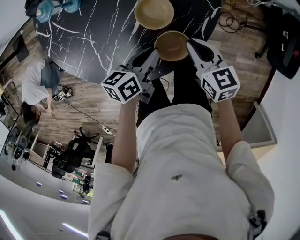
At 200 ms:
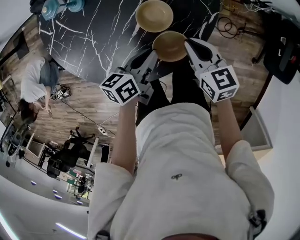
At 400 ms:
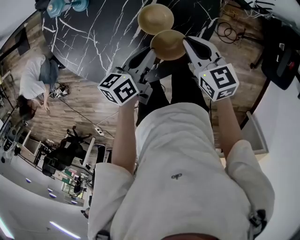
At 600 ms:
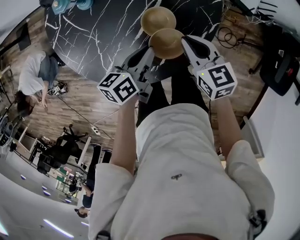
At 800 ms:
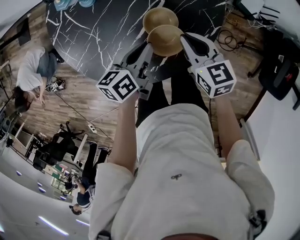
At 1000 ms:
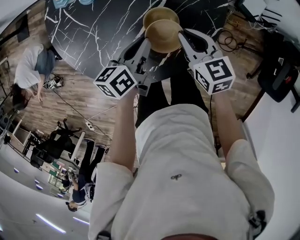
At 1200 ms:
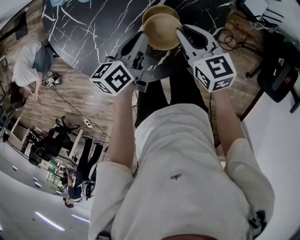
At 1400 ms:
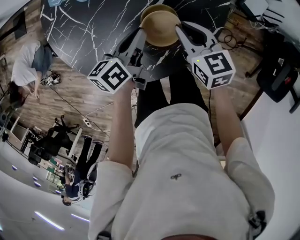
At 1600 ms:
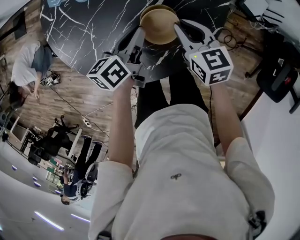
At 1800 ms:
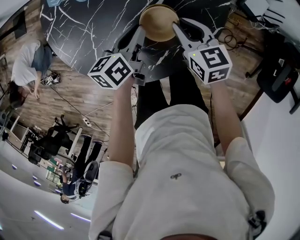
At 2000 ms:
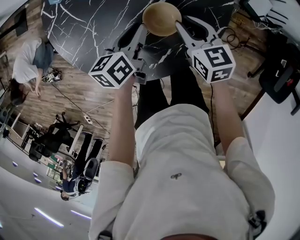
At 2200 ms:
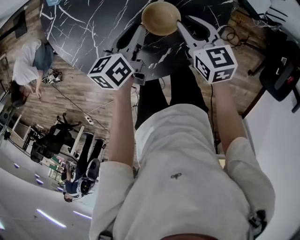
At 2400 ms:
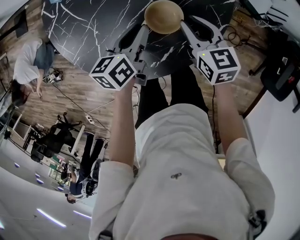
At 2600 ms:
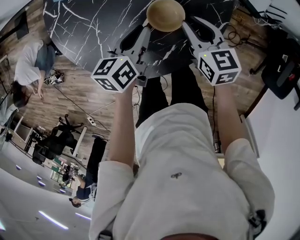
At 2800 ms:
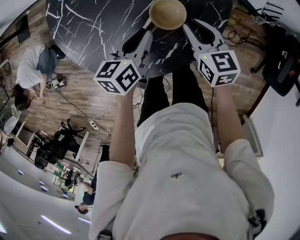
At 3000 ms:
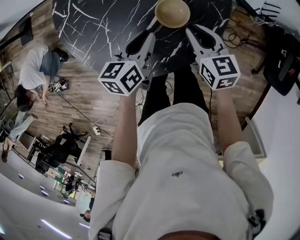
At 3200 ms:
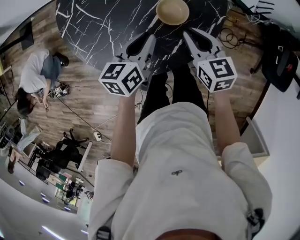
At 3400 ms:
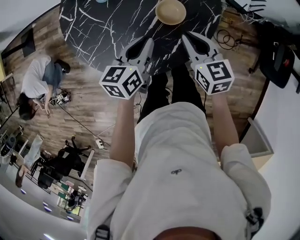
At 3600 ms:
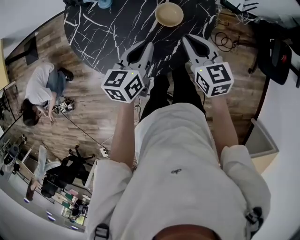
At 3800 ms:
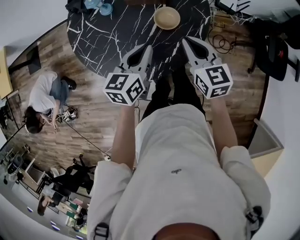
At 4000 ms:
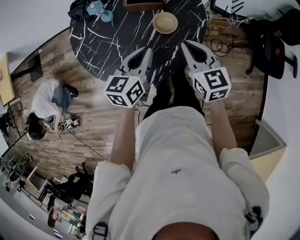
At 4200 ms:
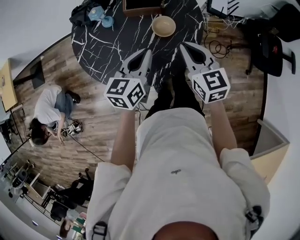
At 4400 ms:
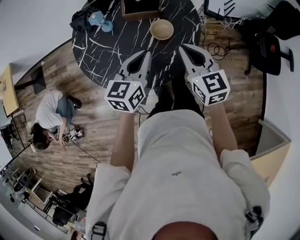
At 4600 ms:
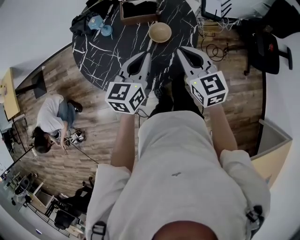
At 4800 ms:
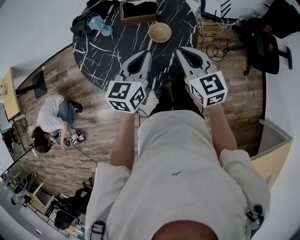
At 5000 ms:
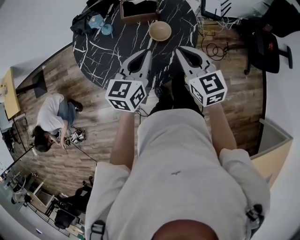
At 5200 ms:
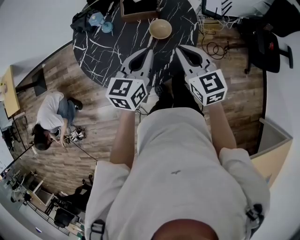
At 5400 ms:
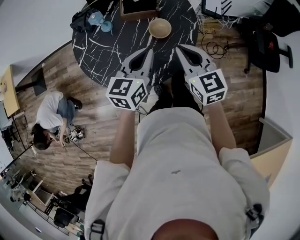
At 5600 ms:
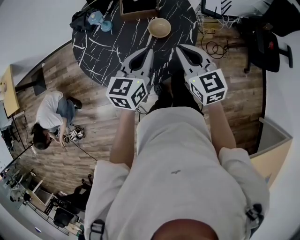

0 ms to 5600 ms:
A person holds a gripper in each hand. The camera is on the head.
0 ms to 1400 ms: Both grippers travel together forward, some 10 cm. The left gripper swivels some 20 degrees.
1400 ms to 2800 ms: The grippers make only small movements.
2800 ms to 4200 ms: Both grippers move upward and backward, approximately 20 cm. The left gripper changes its angle by approximately 30 degrees, while the right gripper swivels approximately 20 degrees, and closes its fingers.
4200 ms to 5600 ms: The grippers make only small movements.

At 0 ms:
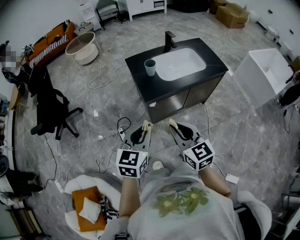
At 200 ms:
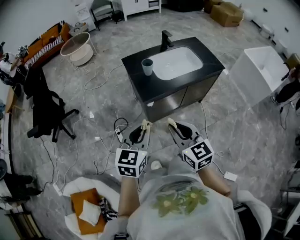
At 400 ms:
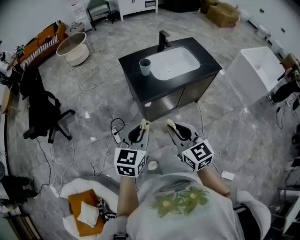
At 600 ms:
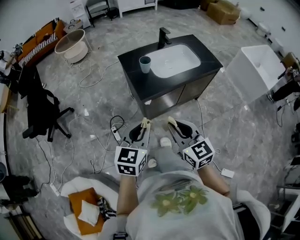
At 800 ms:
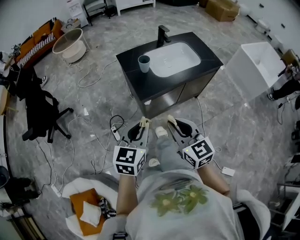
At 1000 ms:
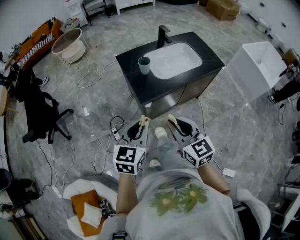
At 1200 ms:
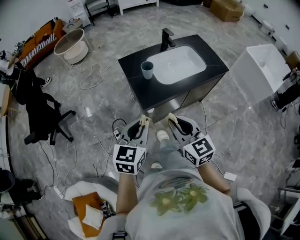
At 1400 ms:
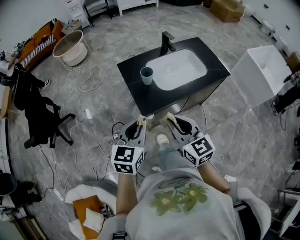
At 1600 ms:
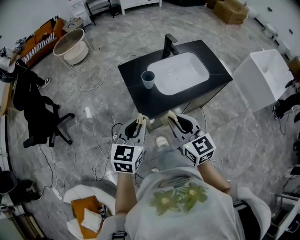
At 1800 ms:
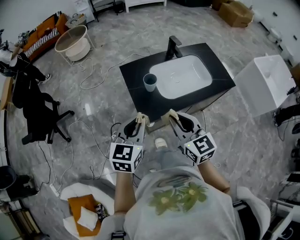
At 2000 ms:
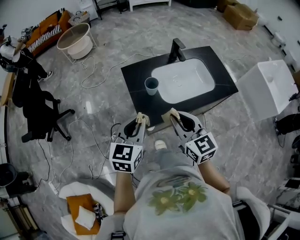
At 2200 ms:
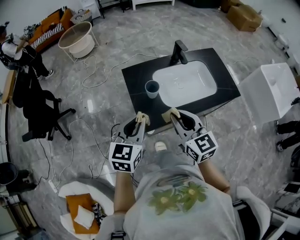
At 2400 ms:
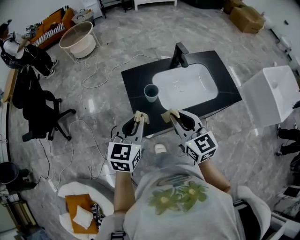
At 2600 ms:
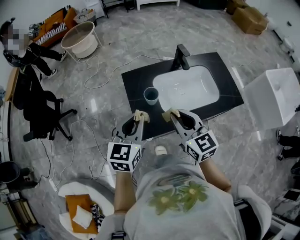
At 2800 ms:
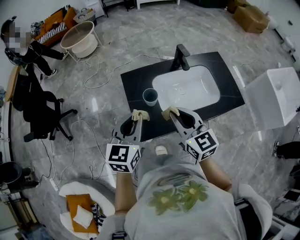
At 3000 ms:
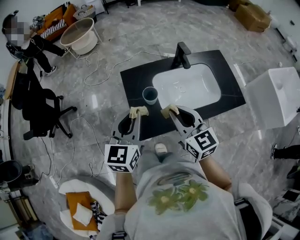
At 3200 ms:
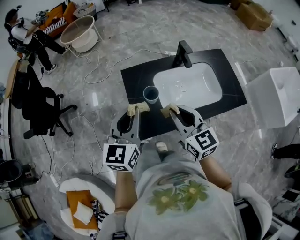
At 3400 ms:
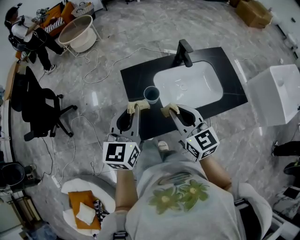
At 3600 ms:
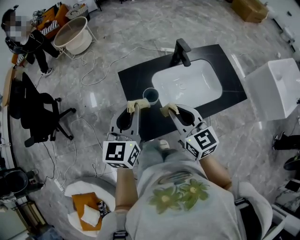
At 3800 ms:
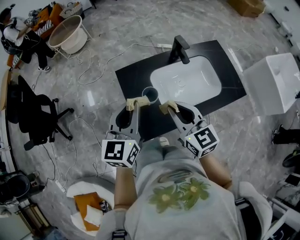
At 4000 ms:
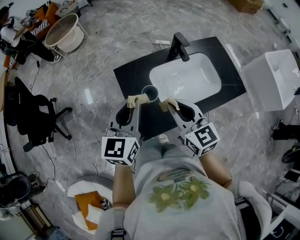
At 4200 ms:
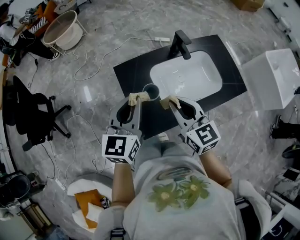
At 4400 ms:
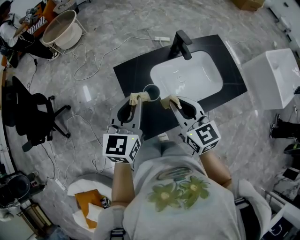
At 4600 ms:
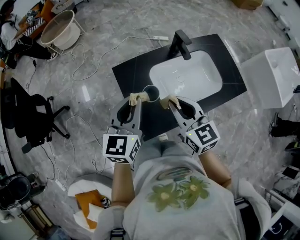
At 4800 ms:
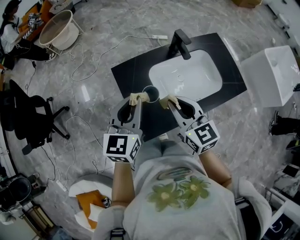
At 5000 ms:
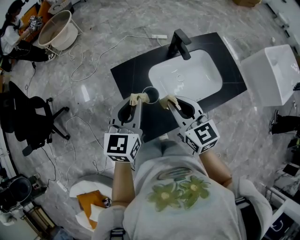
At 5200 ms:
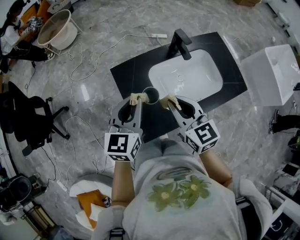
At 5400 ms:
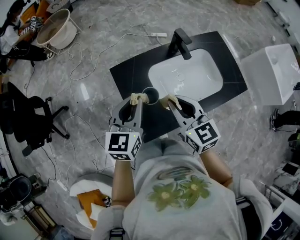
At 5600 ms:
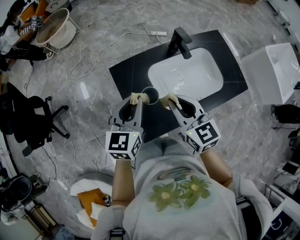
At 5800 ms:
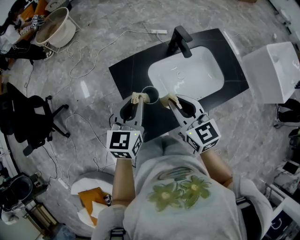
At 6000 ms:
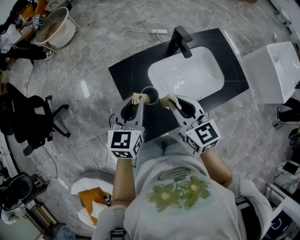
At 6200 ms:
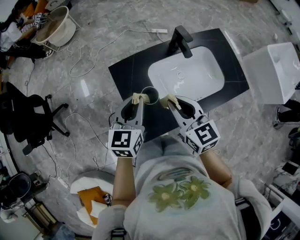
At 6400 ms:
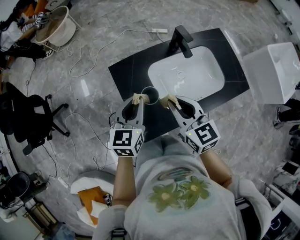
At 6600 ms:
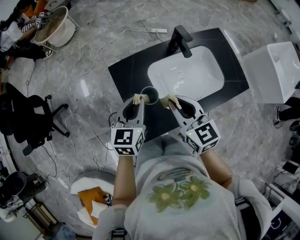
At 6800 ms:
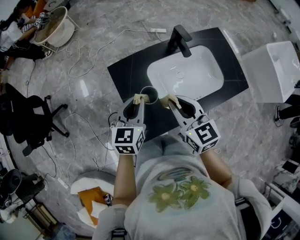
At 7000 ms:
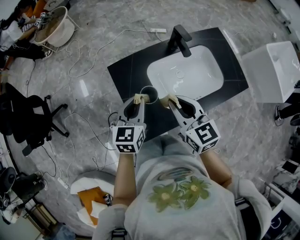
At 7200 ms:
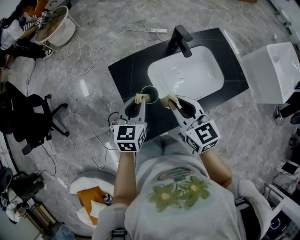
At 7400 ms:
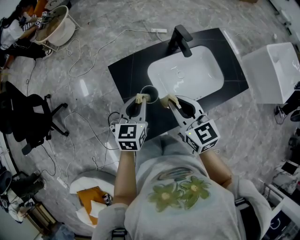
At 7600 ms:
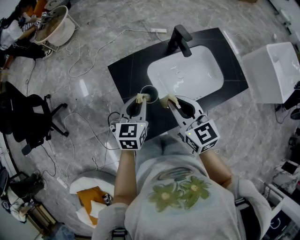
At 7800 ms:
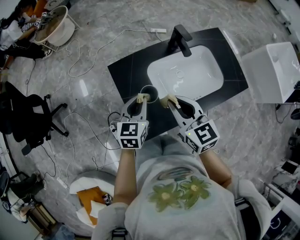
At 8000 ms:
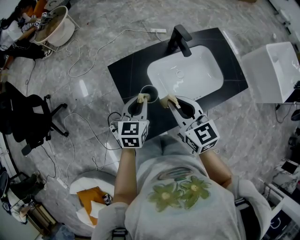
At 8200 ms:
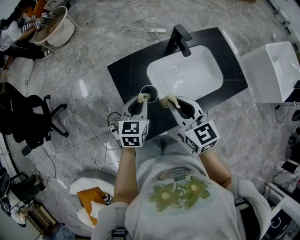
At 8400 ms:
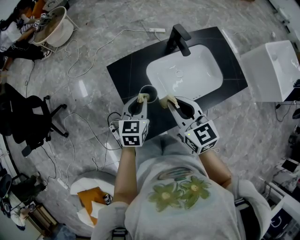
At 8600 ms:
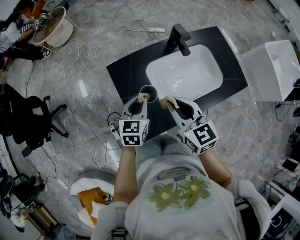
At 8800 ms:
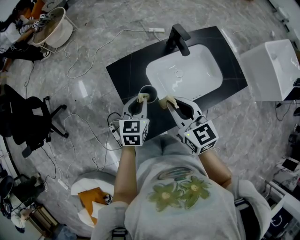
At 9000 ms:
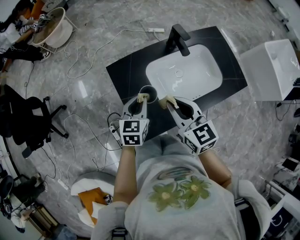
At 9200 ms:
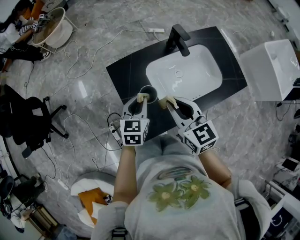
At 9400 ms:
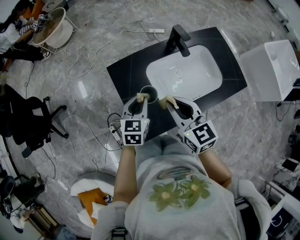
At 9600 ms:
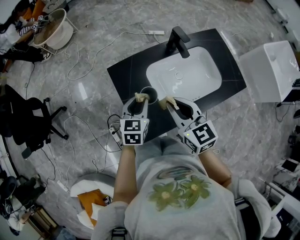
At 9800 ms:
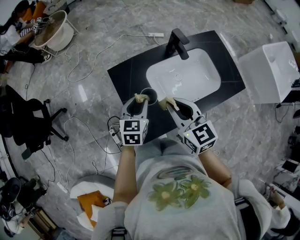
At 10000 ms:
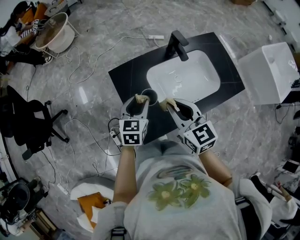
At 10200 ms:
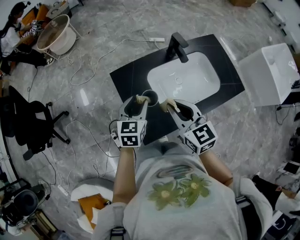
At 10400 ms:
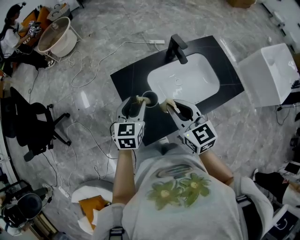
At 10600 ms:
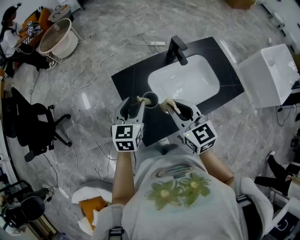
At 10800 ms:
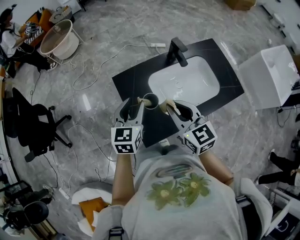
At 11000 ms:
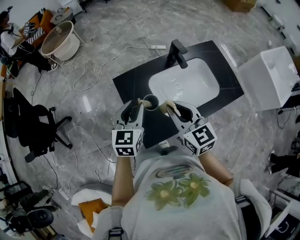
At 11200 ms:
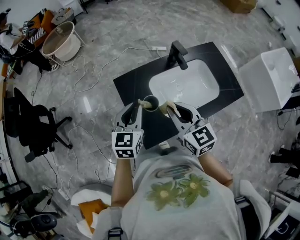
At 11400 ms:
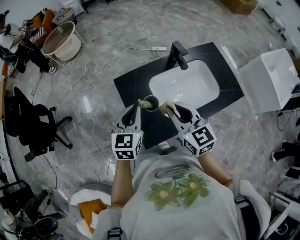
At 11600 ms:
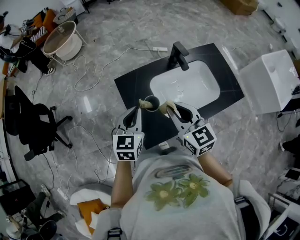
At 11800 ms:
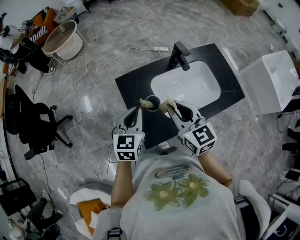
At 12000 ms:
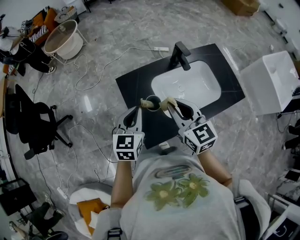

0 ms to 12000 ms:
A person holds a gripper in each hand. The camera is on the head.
0 ms to 1600 ms: Both grippers travel together forward, about 20 cm.
1600 ms to 3000 ms: The grippers both shift forward by some 20 cm.
3000 ms to 4400 ms: The grippers both shift forward by about 10 cm.
4400 ms to 6000 ms: The left gripper heads downward, covering some 5 cm. The right gripper ends up about 5 cm from where it was.
6000 ms to 7600 ms: The left gripper is displaced downward by about 5 cm.
7600 ms to 9000 ms: The grippers stay close to where they were, moving slightly.
9000 ms to 10400 ms: The left gripper heads upward, covering about 5 cm, and opens up.
10400 ms to 12000 ms: The left gripper changes place by approximately 5 cm, and closes up.

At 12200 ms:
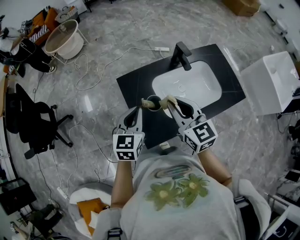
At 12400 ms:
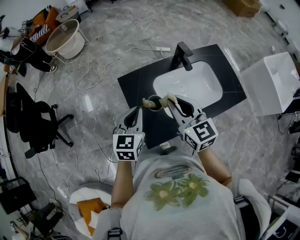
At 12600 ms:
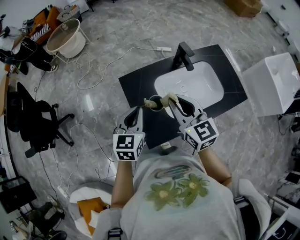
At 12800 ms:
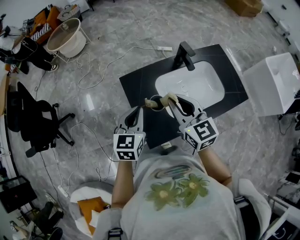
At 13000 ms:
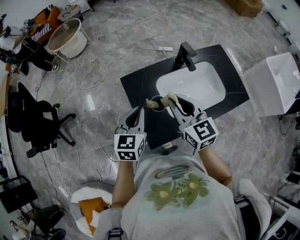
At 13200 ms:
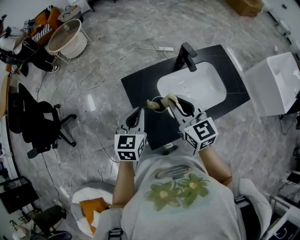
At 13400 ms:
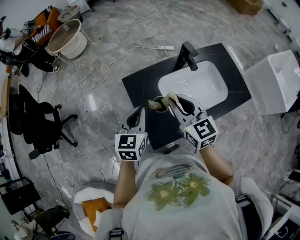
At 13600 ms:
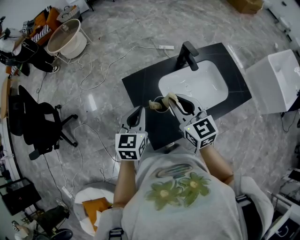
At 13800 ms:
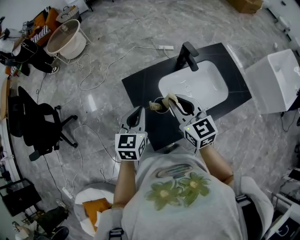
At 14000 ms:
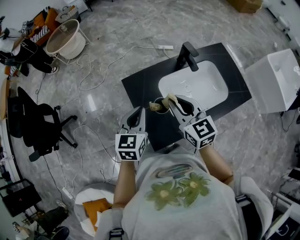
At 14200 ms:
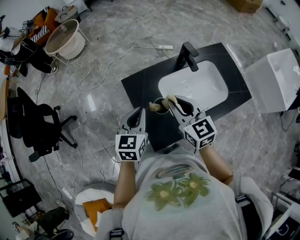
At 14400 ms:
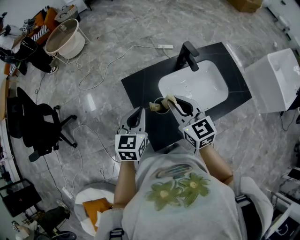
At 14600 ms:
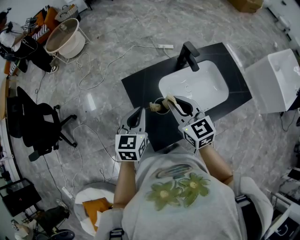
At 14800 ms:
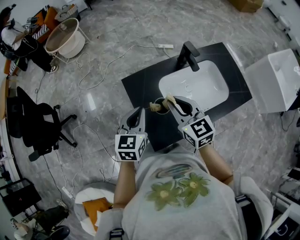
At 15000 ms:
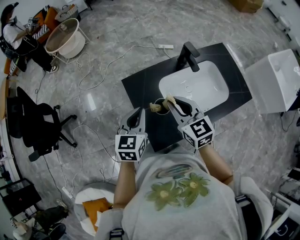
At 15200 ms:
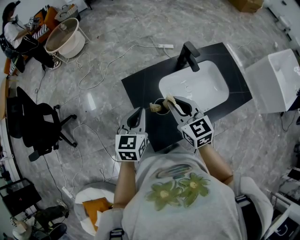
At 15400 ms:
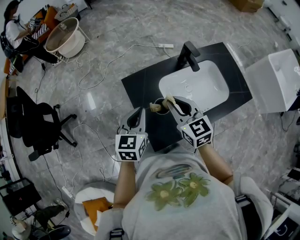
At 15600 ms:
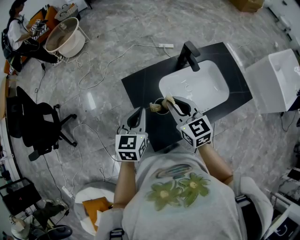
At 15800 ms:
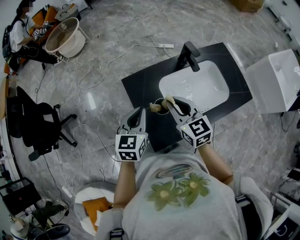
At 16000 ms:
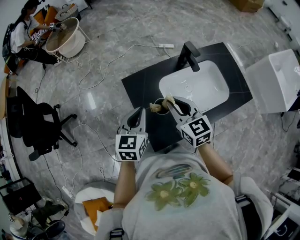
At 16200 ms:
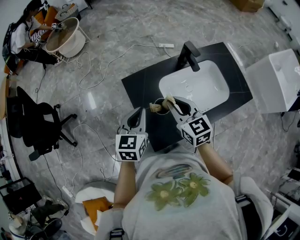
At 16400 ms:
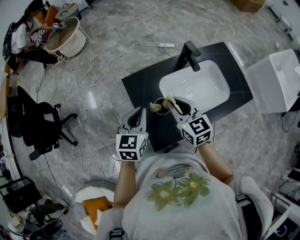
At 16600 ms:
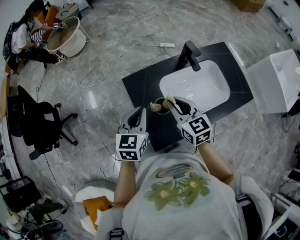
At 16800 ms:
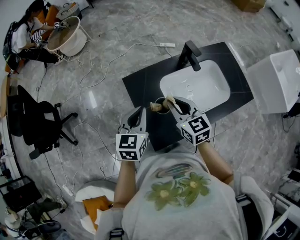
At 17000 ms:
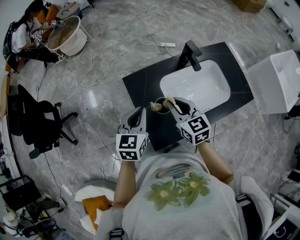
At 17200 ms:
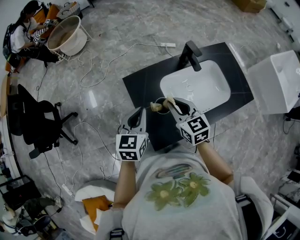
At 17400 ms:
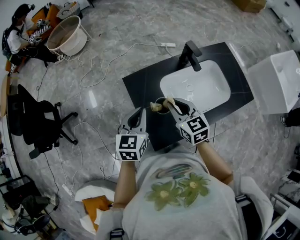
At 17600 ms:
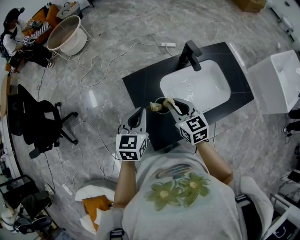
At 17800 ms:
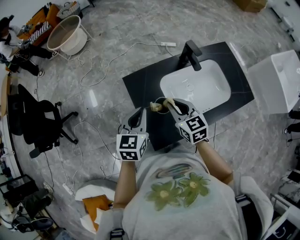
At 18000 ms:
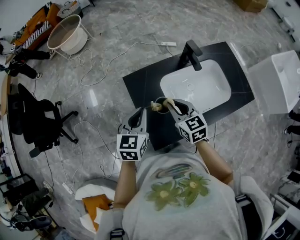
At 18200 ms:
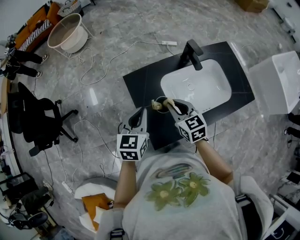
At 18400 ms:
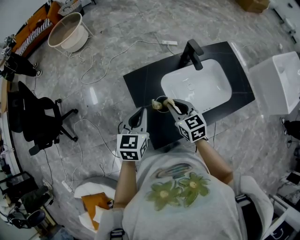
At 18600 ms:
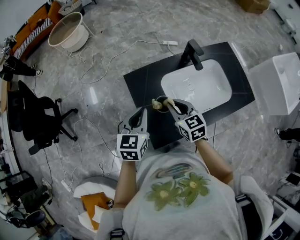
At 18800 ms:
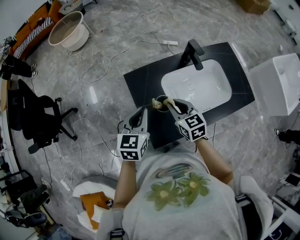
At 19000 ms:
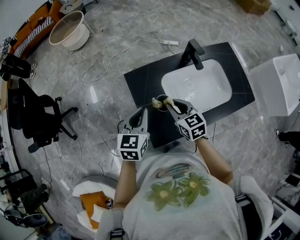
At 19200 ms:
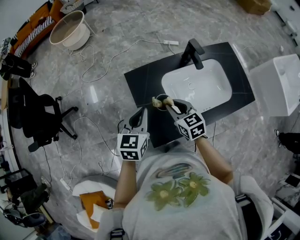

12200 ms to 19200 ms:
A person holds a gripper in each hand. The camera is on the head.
12200 ms to 13600 ms: The grippers move only a little.
13600 ms to 16400 ms: The grippers make only small movements.
16400 ms to 17800 ms: There are only small adjustments of the grippers.
17800 ms to 19200 ms: The grippers stay close to where they were, moving slightly.
